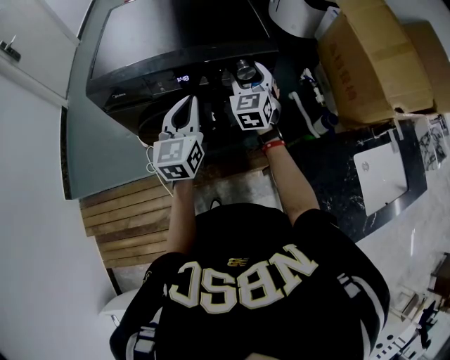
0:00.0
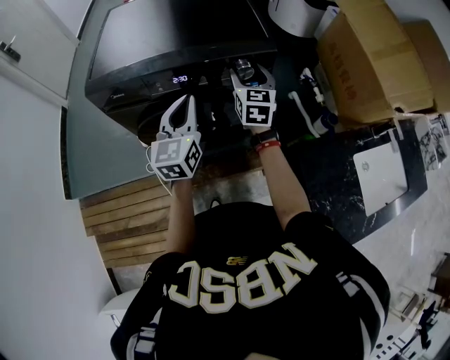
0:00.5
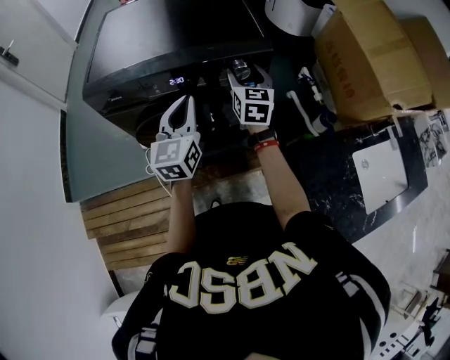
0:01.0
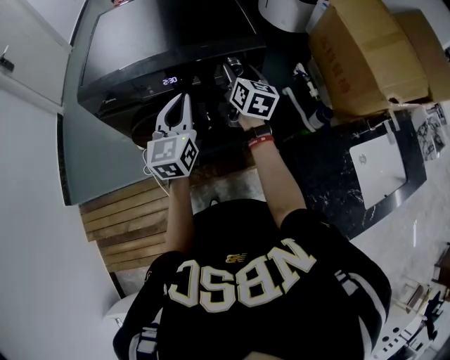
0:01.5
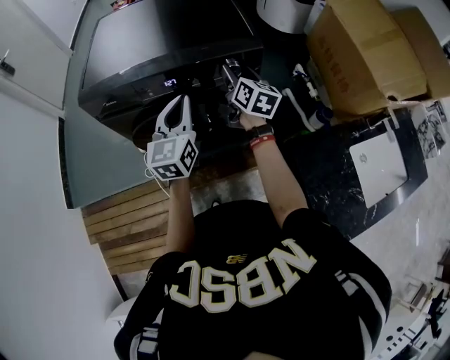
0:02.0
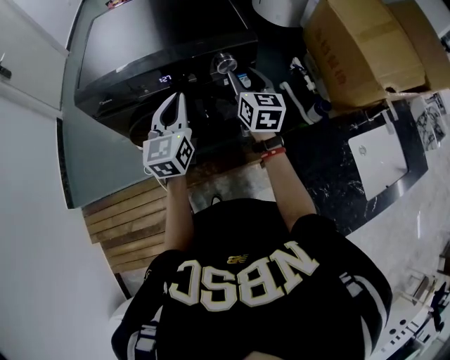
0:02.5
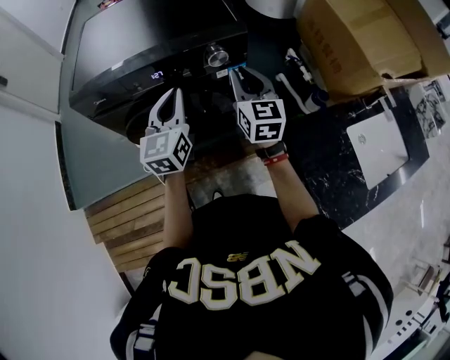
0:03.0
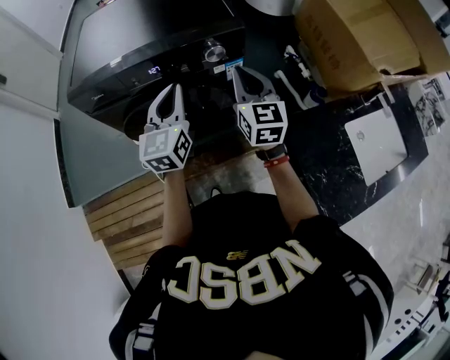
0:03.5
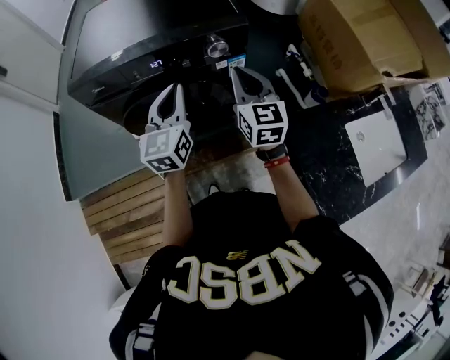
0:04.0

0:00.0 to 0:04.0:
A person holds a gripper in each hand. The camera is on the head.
0:00.0 to 0:02.0: The right gripper rolls clockwise, seen from behind, by approximately 50 degrees.
0:02.0 to 0:04.0: The right gripper heads backward, covering some 15 cm, turns by about 30 degrees, and closes.

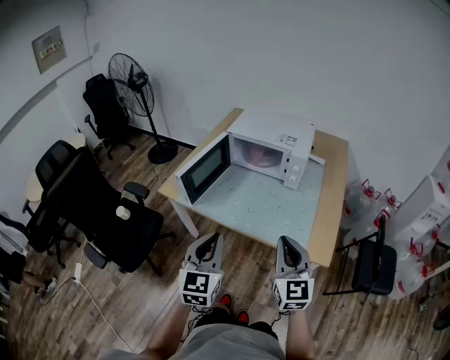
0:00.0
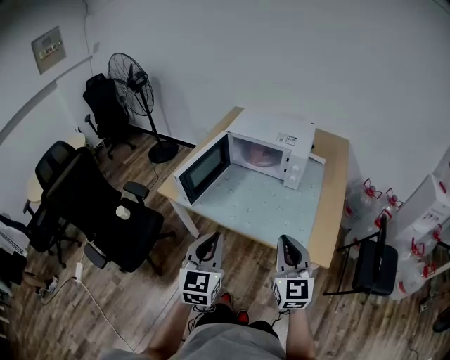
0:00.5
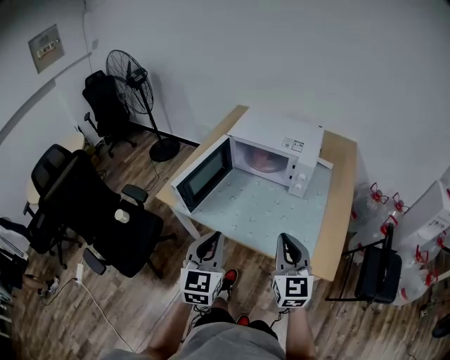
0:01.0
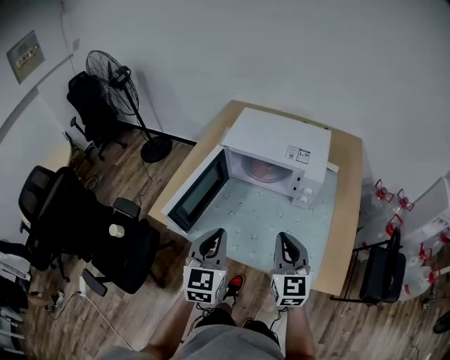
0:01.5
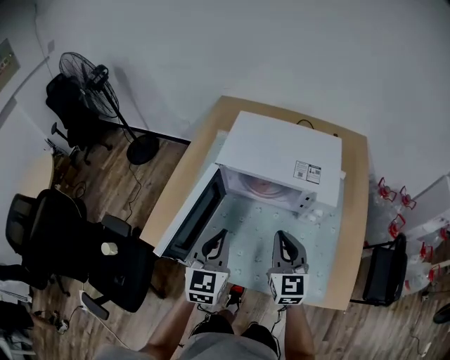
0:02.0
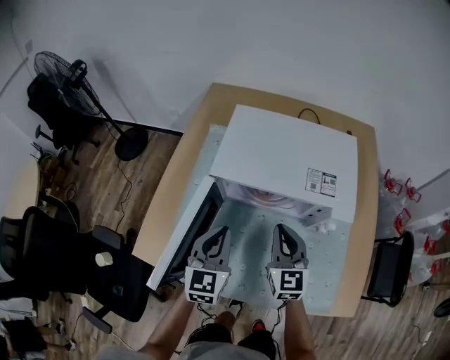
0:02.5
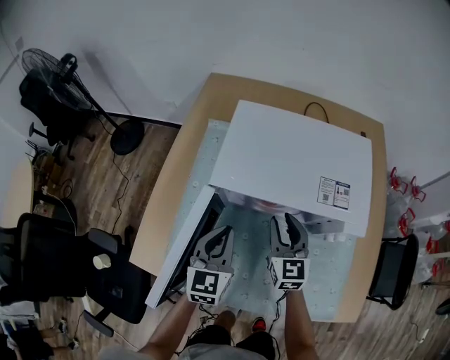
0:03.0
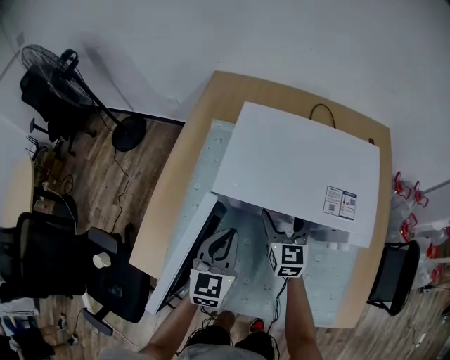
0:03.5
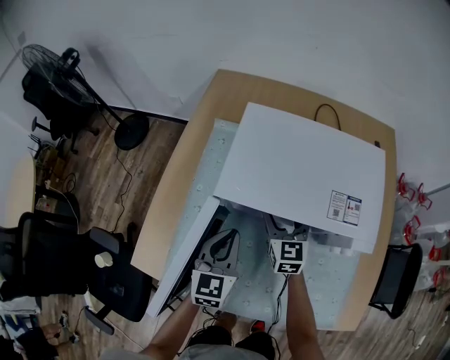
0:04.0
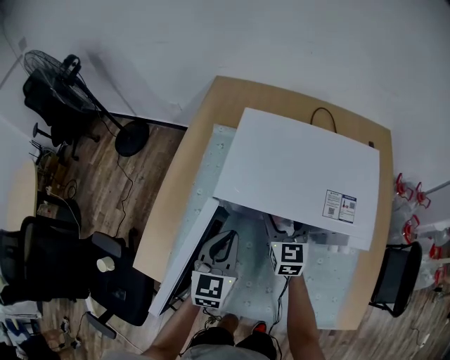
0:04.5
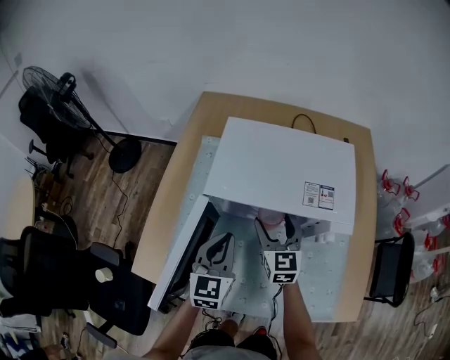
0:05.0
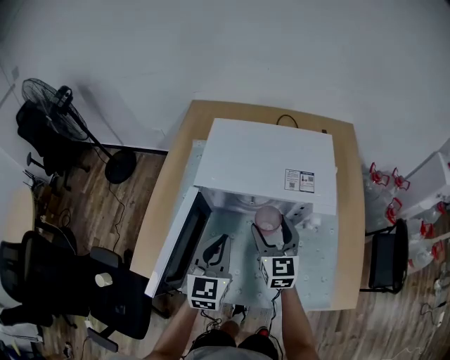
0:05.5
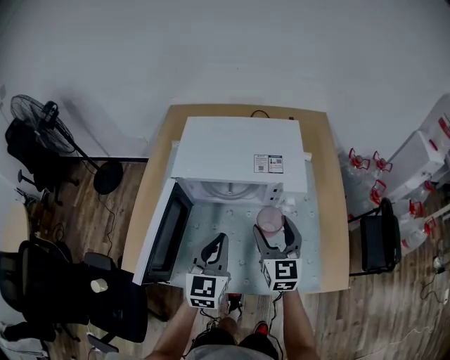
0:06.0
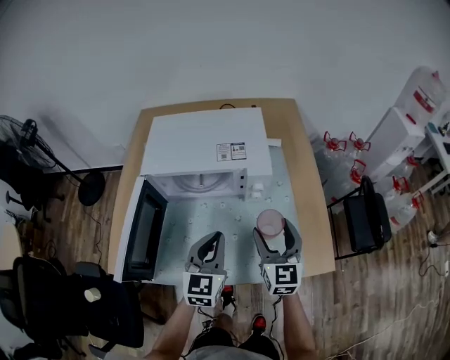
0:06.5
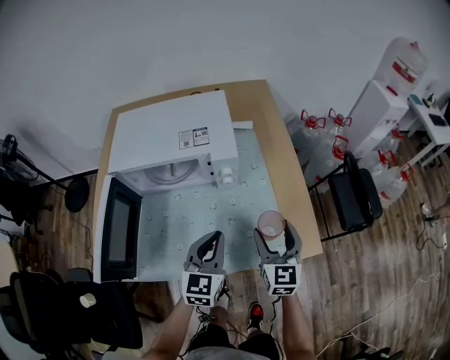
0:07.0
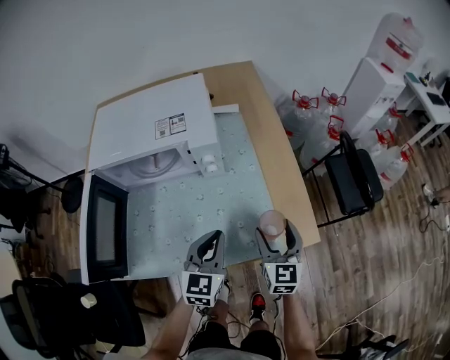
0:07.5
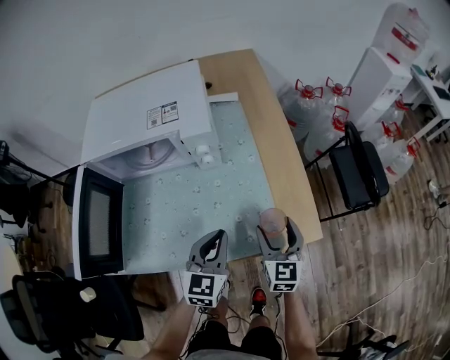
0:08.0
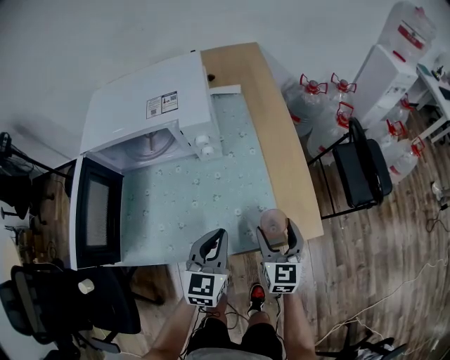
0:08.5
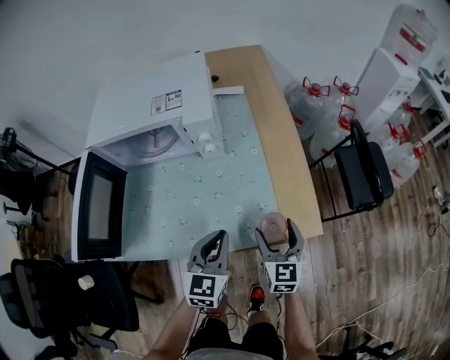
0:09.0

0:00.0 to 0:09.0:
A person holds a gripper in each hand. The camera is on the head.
0:00.0 to 0:02.0: The grippers both shift forward by some 35 cm.
0:02.0 to 0:04.5: Both grippers move forward and downward, about 20 cm. The right gripper opens.
0:04.5 to 0:07.0: The grippers both shift to the right and backward by roughly 35 cm. The right gripper swivels about 30 degrees. The left gripper changes its angle by roughly 20 degrees.
0:07.0 to 0:09.0: Both grippers travel together downward, to the right and backward, approximately 15 cm.

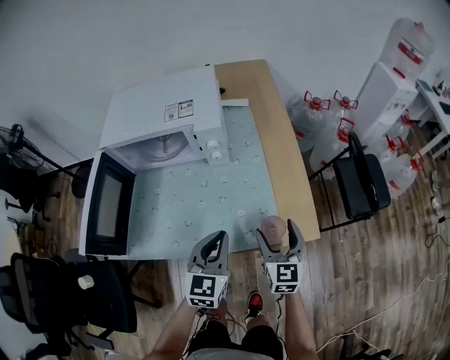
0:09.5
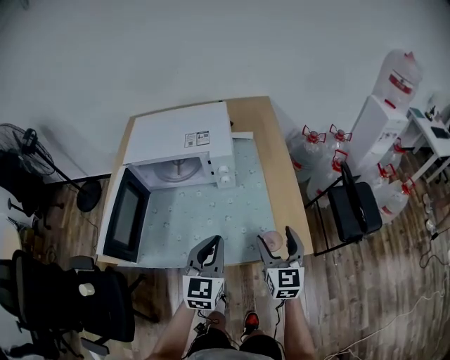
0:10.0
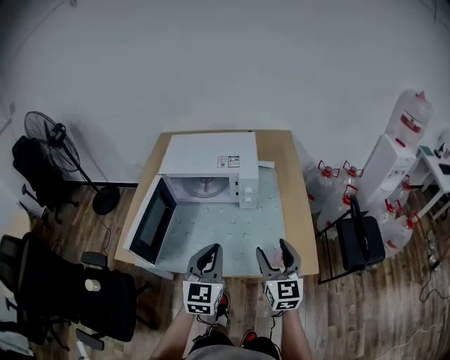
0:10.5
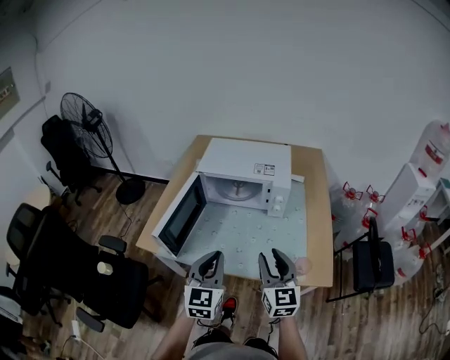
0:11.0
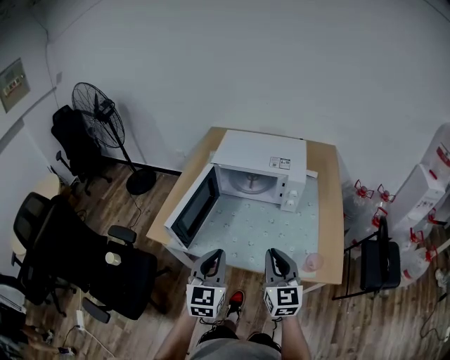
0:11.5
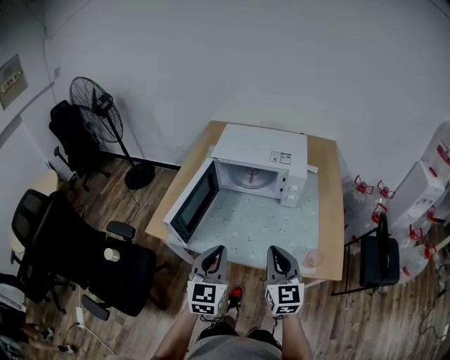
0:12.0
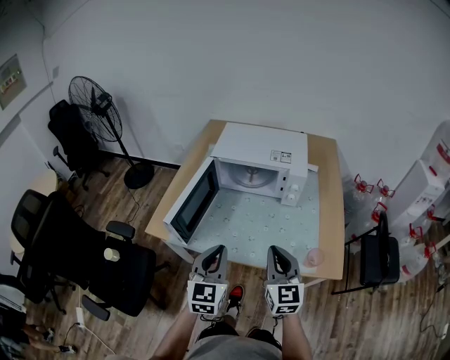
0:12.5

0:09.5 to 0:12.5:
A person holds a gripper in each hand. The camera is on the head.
0:09.5 to 0:11.0: The left gripper heads to the left, upward and backward, covering roughly 25 cm, and turns by about 20 degrees, while the right gripper heads upward and to the left, covering roughly 25 cm, turns by about 20 degrees, and closes its fingers.
0:11.0 to 0:12.5: The right gripper closes its fingers.

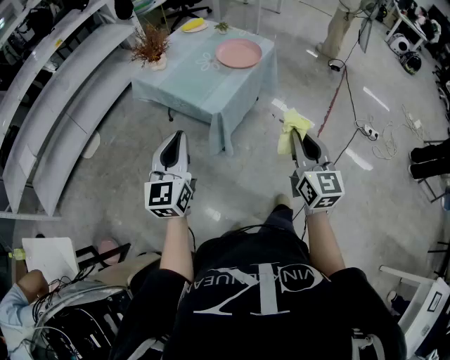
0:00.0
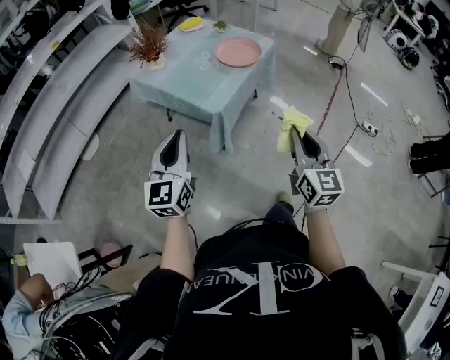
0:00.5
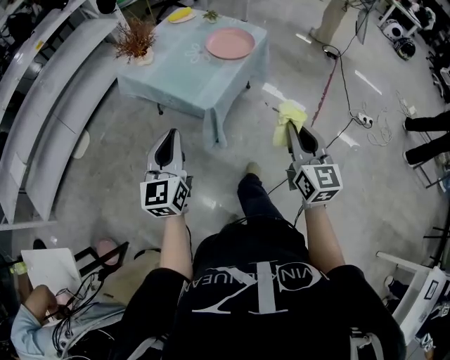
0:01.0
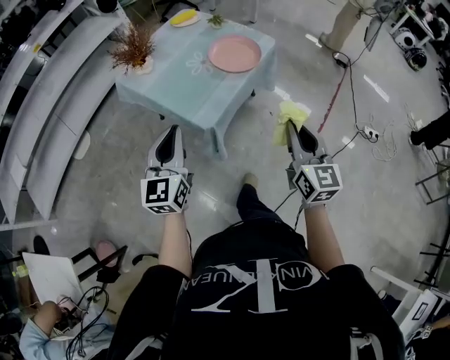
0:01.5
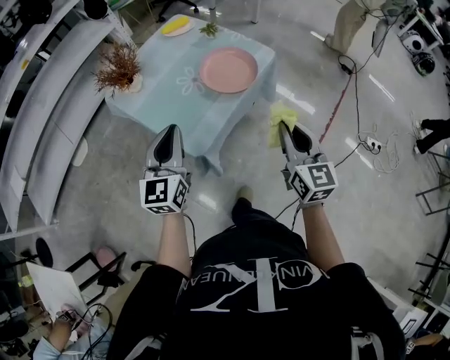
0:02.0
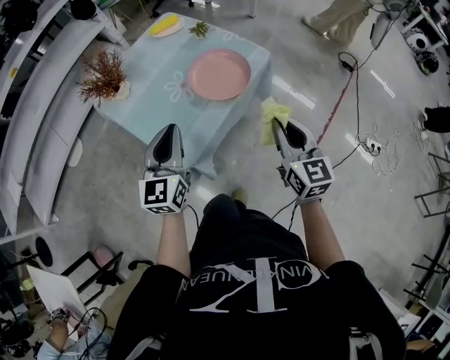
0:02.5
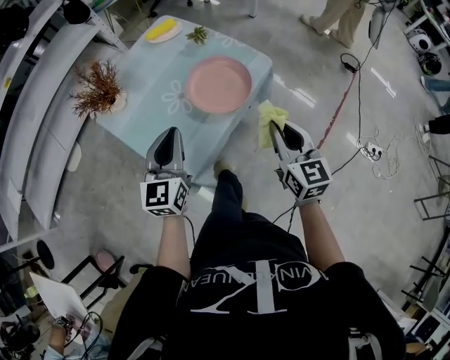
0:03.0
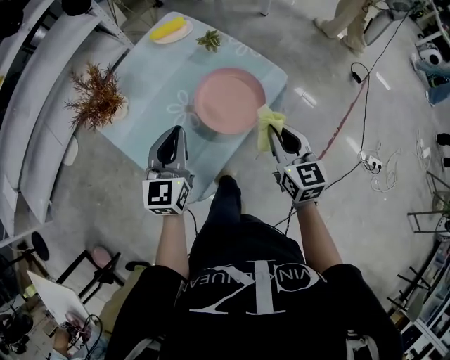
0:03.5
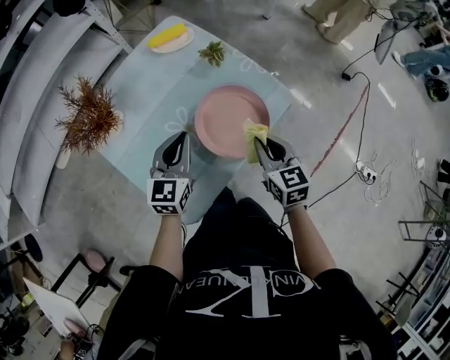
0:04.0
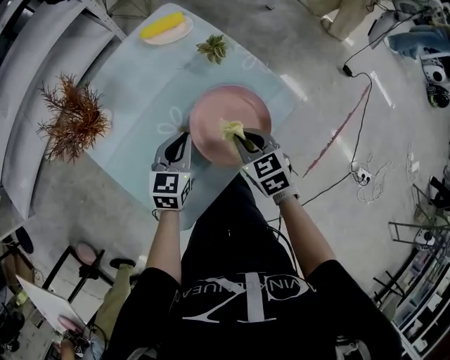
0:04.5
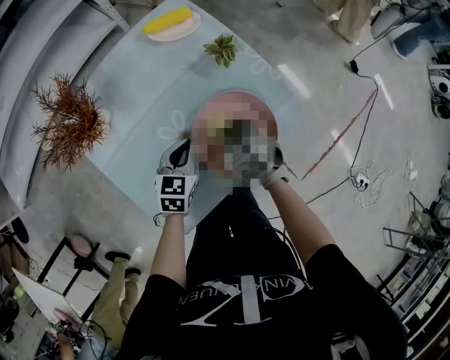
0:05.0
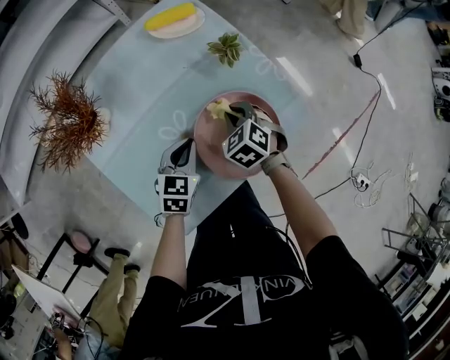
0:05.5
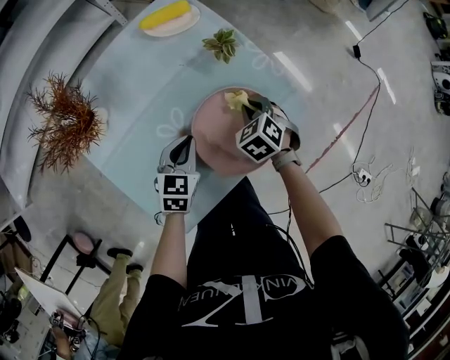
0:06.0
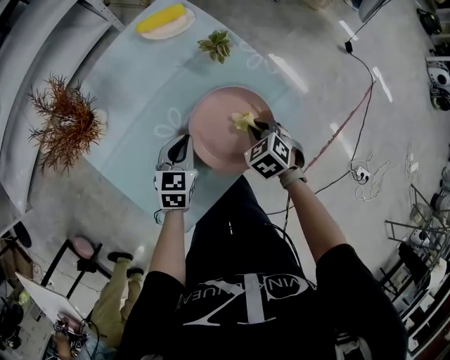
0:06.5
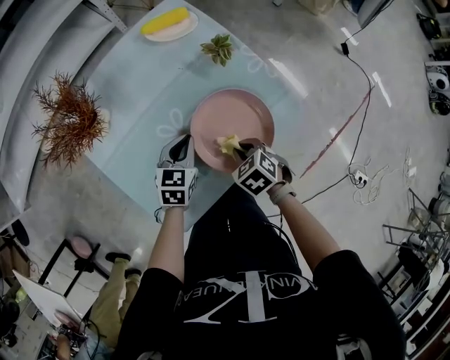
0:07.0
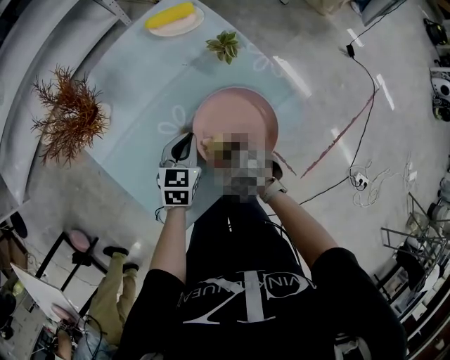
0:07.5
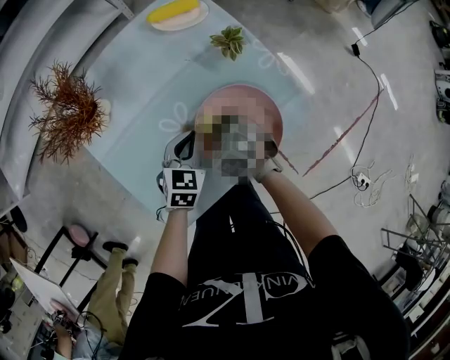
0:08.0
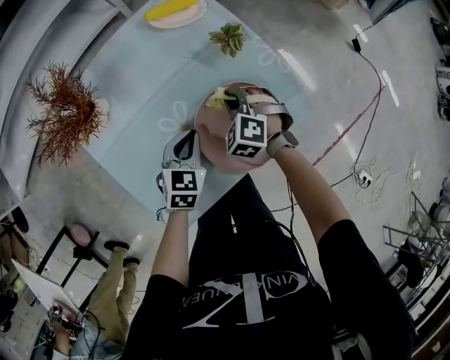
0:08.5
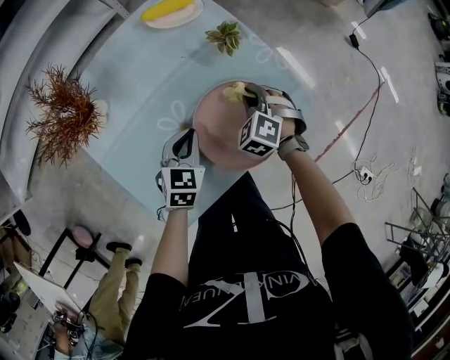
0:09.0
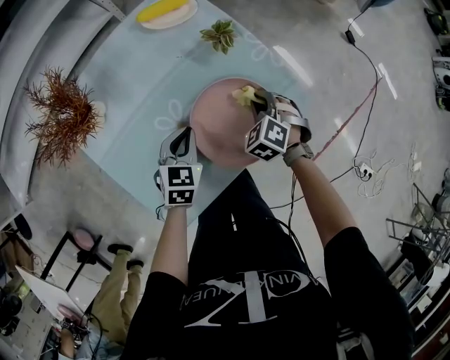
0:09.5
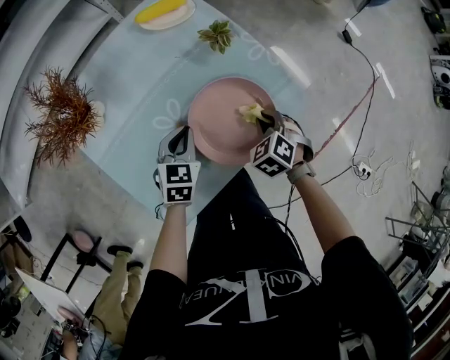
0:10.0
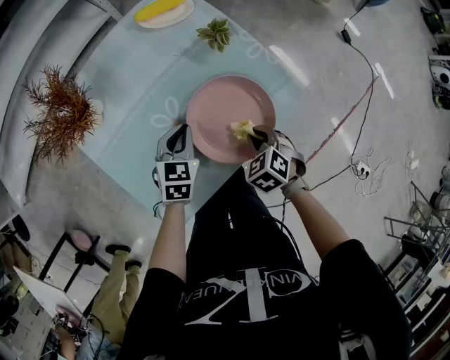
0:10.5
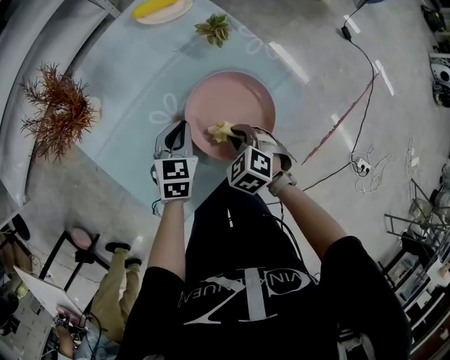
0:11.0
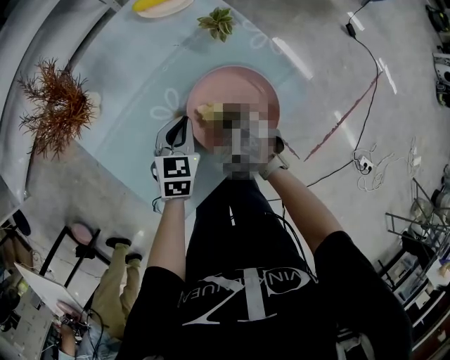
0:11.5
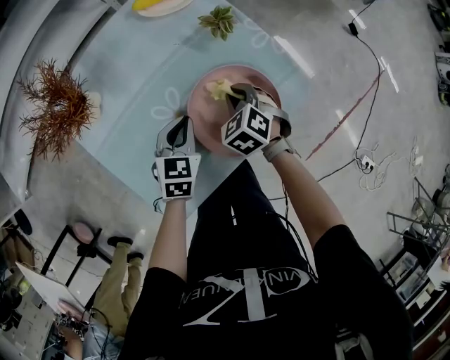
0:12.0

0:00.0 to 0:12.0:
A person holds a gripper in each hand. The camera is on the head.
0:00.0 to 0:02.0: The grippers both shift forward by some 30 cm.
0:02.0 to 0:04.0: Both grippers move forward and downward, roughly 35 cm. The right gripper swivels about 30 degrees.
0:04.0 to 0:06.0: The left gripper travels downward by some 15 cm, and turns by about 20 degrees; the right gripper travels forward and downward by roughly 20 cm, and changes its angle by roughly 50 degrees.
0:06.0 to 0:08.0: The right gripper is displaced to the left by approximately 10 cm.
0:08.0 to 0:10.0: The right gripper heads to the right, covering some 15 cm.
0:10.0 to 0:12.0: The right gripper shifts about 10 cm to the left.
